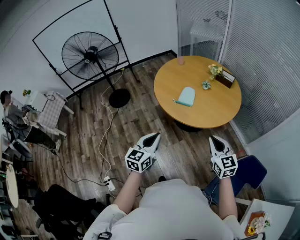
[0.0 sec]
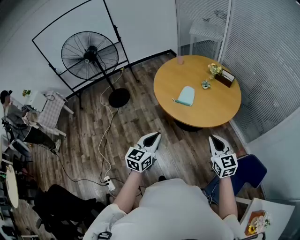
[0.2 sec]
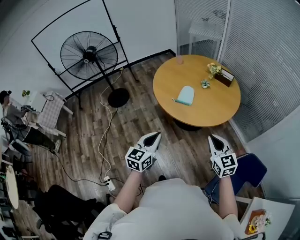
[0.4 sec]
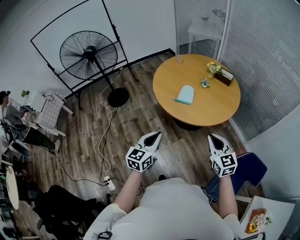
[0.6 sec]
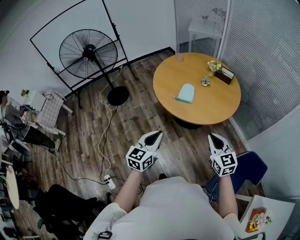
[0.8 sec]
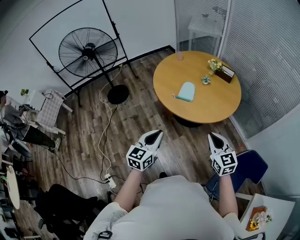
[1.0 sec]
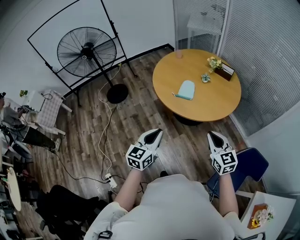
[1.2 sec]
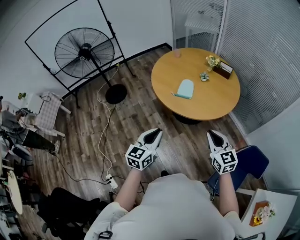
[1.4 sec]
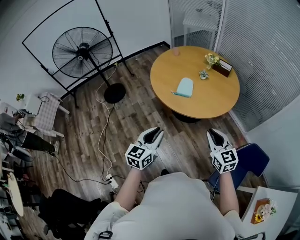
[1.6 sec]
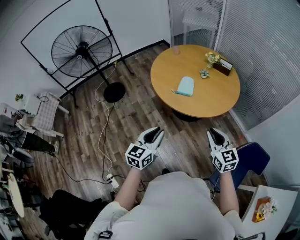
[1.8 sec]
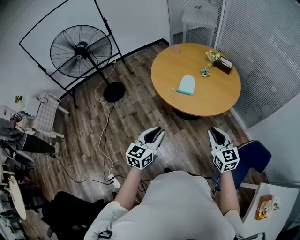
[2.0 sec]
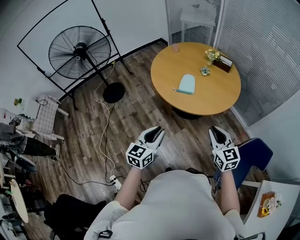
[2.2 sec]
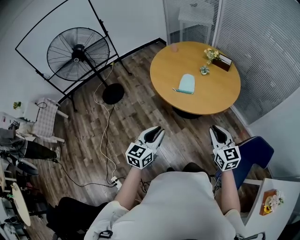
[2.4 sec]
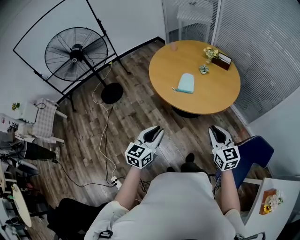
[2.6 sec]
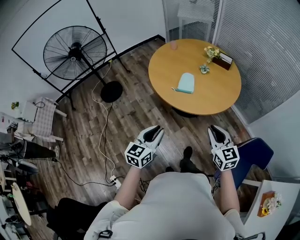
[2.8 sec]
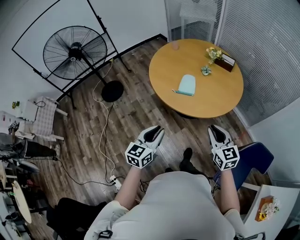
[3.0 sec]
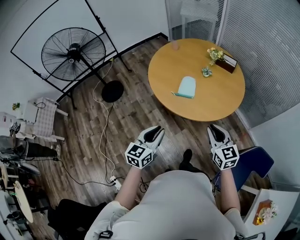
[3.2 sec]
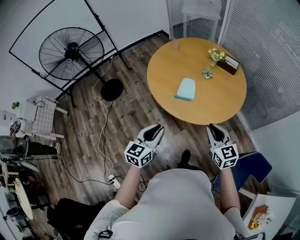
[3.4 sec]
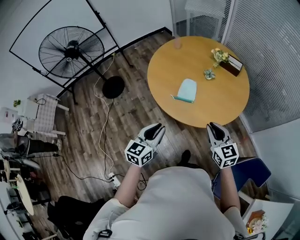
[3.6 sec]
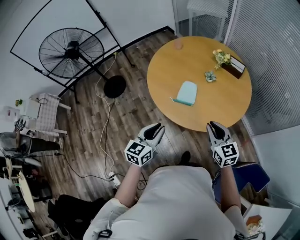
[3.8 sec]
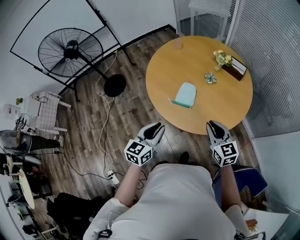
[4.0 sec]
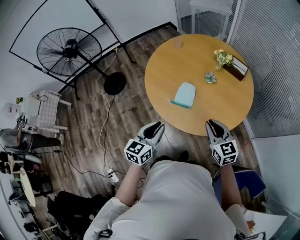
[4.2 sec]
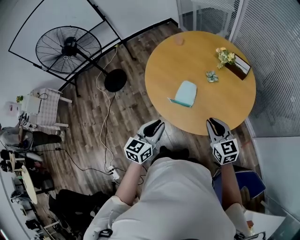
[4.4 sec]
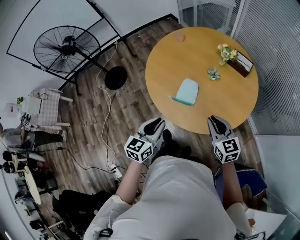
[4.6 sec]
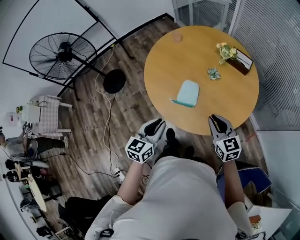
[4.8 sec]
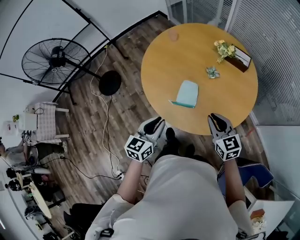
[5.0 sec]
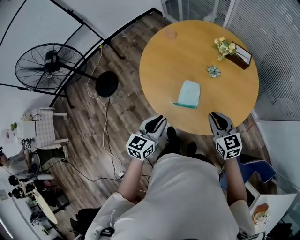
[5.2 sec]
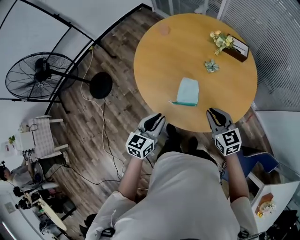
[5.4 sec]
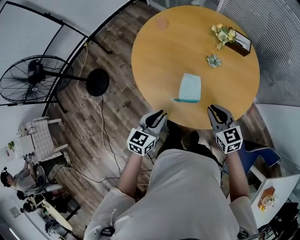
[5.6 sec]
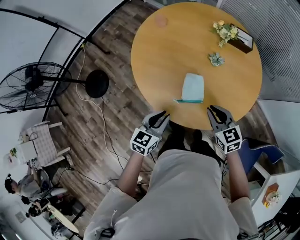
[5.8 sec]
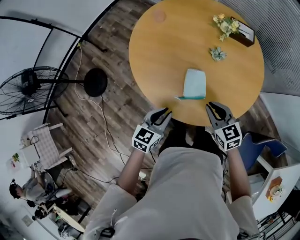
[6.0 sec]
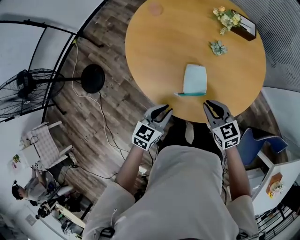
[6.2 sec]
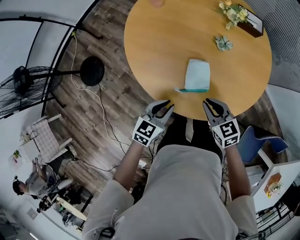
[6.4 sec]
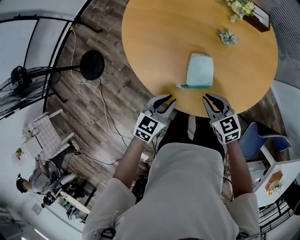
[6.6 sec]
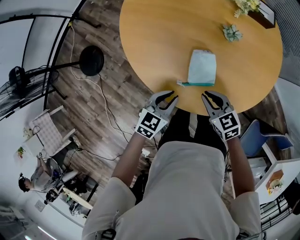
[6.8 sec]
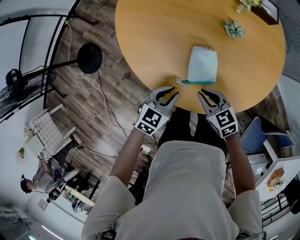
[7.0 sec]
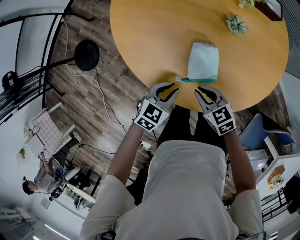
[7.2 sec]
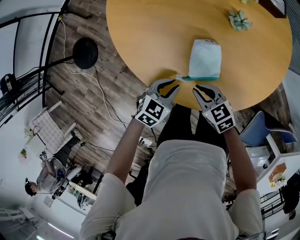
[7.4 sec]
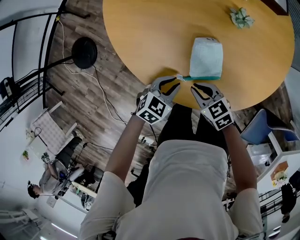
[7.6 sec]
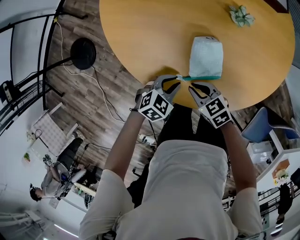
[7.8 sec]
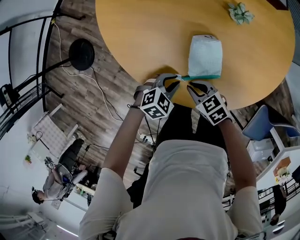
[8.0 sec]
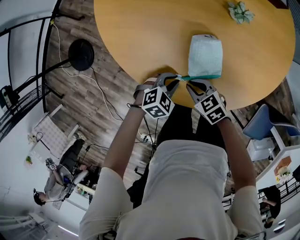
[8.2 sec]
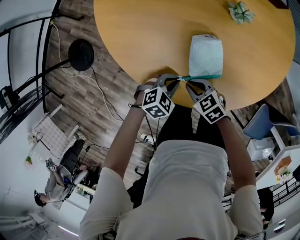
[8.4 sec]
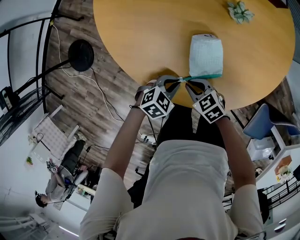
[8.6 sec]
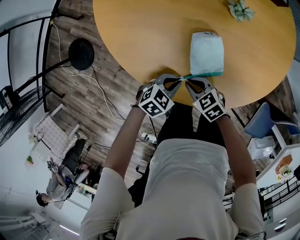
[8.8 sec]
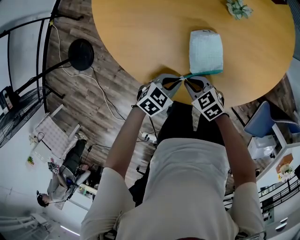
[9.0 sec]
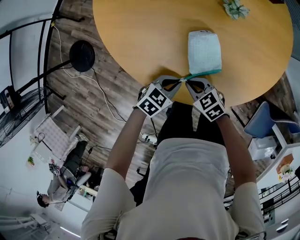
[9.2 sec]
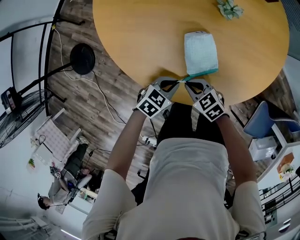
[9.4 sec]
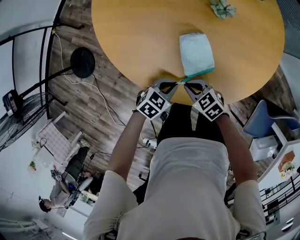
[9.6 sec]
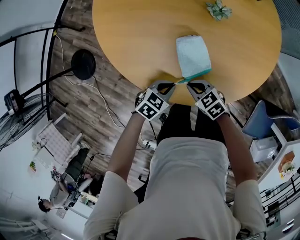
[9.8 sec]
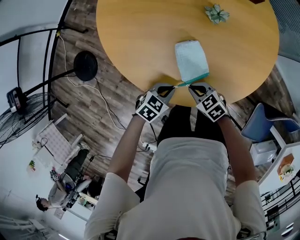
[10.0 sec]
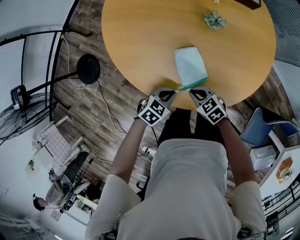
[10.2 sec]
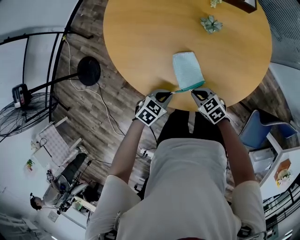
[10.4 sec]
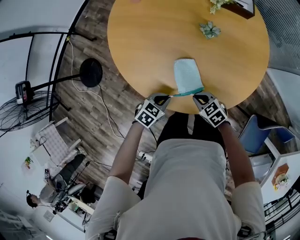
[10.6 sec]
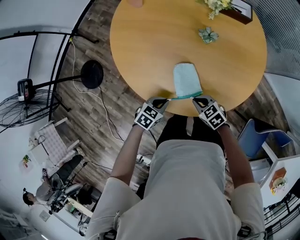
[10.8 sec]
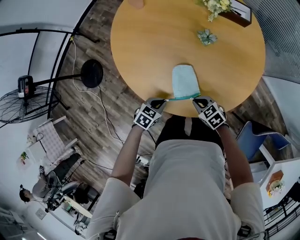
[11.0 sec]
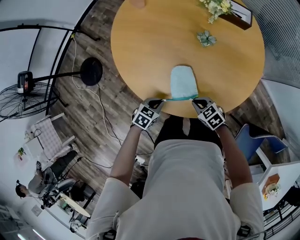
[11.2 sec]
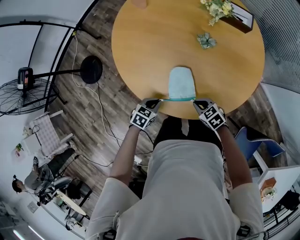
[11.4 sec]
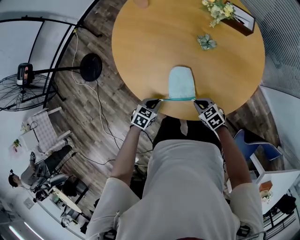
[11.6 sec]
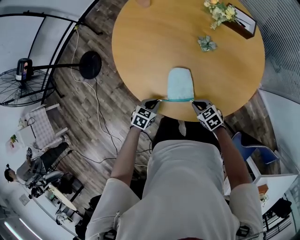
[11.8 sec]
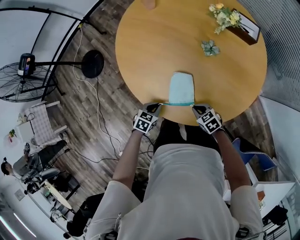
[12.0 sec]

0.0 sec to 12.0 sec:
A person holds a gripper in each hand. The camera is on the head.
0.0 sec to 1.6 sec: There are only small adjustments of the grippers.
1.6 sec to 3.0 sec: Both grippers move forward, approximately 5 cm.
3.0 sec to 4.4 sec: The right gripper travels forward by about 25 cm. The left gripper moves forward and to the right, about 25 cm.
4.4 sec to 6.0 sec: The right gripper travels to the left, forward and downward by approximately 25 cm, while the left gripper shifts roughly 25 cm forward, downward and to the left, and swivels about 30 degrees.
6.0 sec to 7.6 sec: The two grippers go approximately 20 cm downward. The left gripper swivels some 30 degrees; the right gripper swivels some 20 degrees.
7.6 sec to 9.0 sec: The right gripper heads downward, covering about 5 cm.
9.0 sec to 10.4 sec: The right gripper ends up about 10 cm from where it was, while the left gripper shifts approximately 5 cm upward.
10.4 sec to 12.0 sec: The right gripper ends up some 10 cm from where it was. The left gripper turns by roughly 30 degrees.

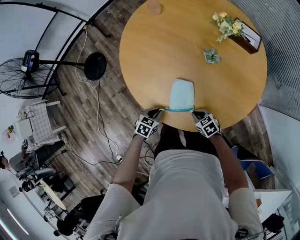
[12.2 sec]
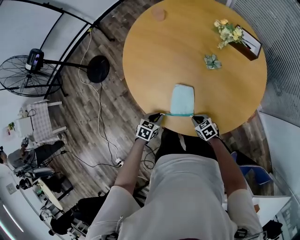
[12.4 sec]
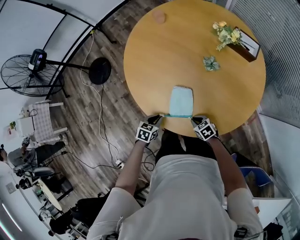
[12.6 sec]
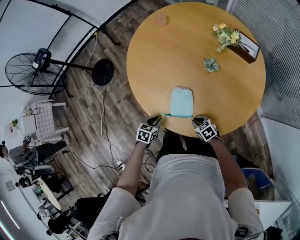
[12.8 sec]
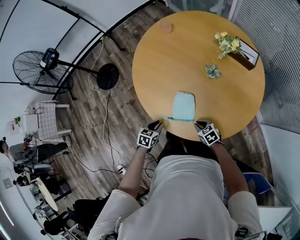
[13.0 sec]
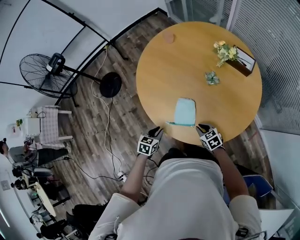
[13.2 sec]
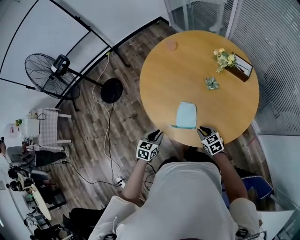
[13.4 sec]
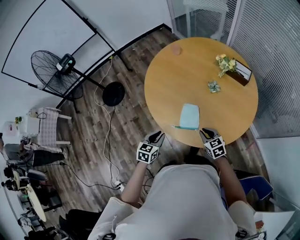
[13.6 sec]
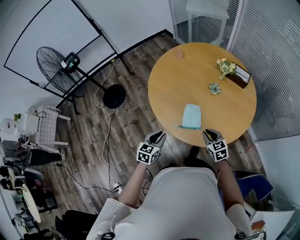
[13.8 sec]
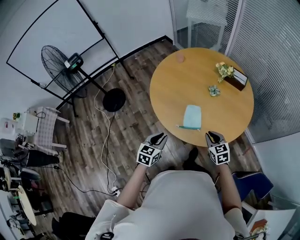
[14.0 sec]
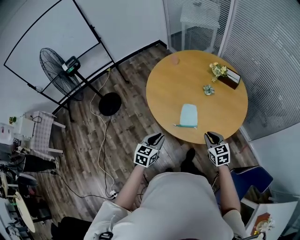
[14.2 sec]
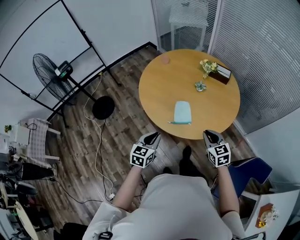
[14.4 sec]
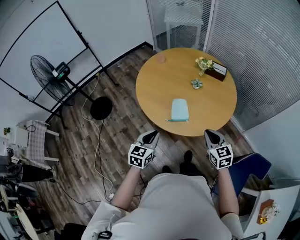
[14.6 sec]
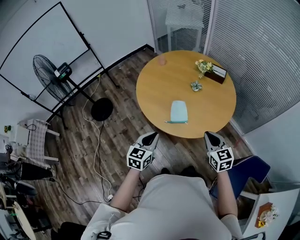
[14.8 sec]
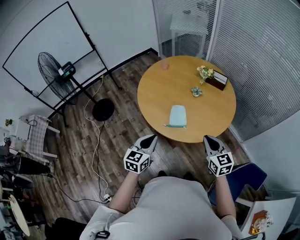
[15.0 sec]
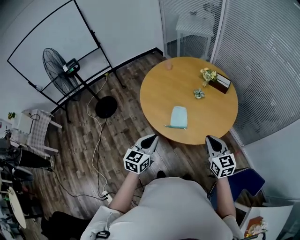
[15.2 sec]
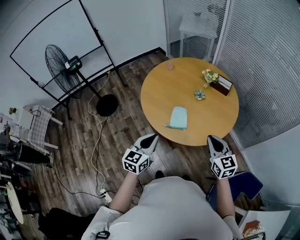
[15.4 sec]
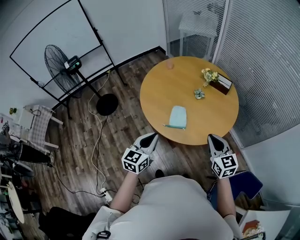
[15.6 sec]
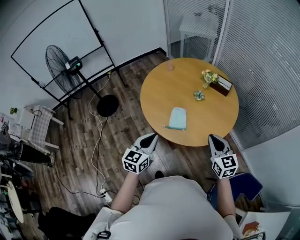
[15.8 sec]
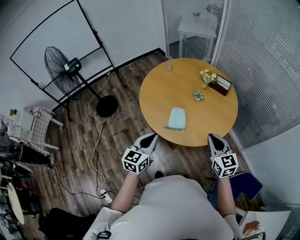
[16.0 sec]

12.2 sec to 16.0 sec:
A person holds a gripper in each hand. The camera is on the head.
12.2 sec to 13.4 sec: Both grippers travel together upward, about 15 cm. The left gripper swivels some 20 degrees.
13.4 sec to 14.8 sec: Both grippers travel together upward and backward, approximately 30 cm. The left gripper changes its angle by roughly 20 degrees. Meanwhile the right gripper swivels about 30 degrees.
14.8 sec to 16.0 sec: The right gripper shifts about 10 cm upward and to the right. The left gripper moves upward, approximately 5 cm.

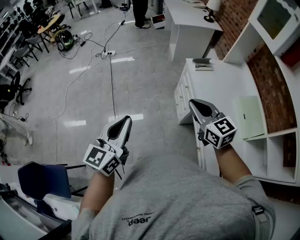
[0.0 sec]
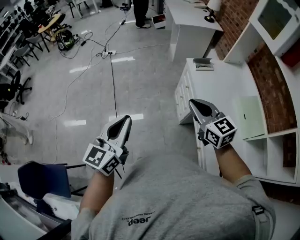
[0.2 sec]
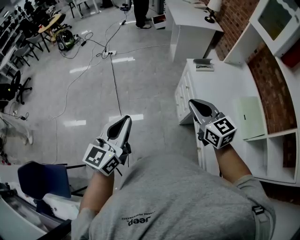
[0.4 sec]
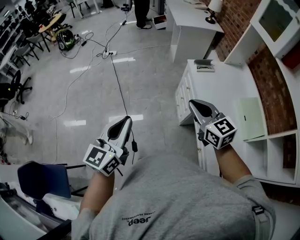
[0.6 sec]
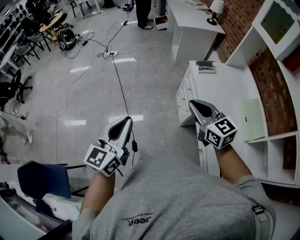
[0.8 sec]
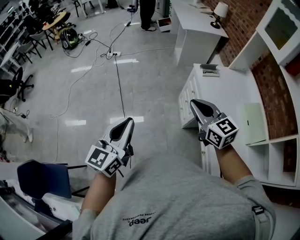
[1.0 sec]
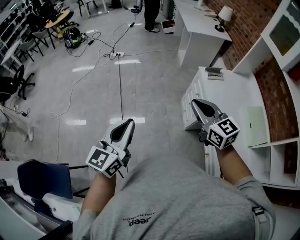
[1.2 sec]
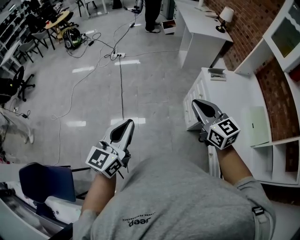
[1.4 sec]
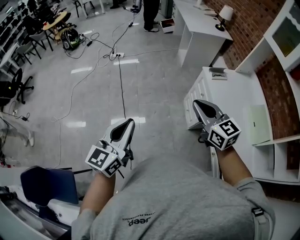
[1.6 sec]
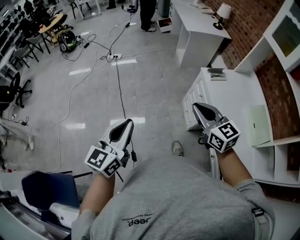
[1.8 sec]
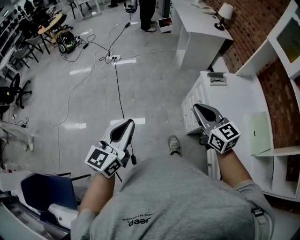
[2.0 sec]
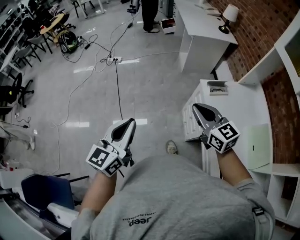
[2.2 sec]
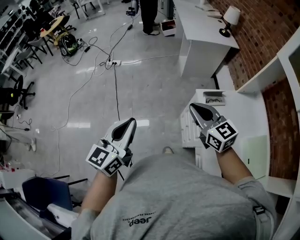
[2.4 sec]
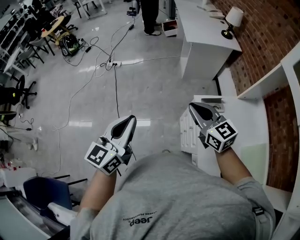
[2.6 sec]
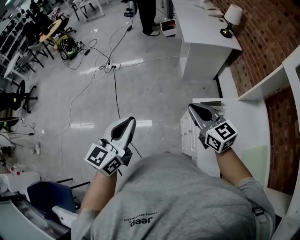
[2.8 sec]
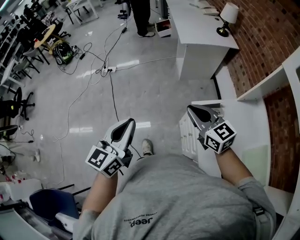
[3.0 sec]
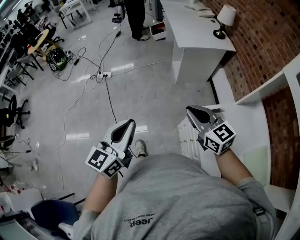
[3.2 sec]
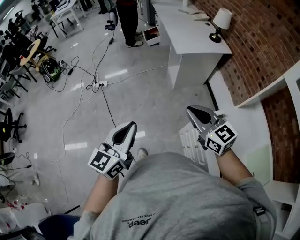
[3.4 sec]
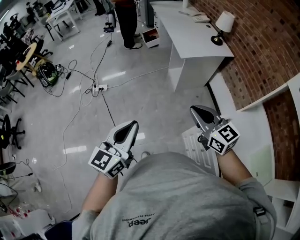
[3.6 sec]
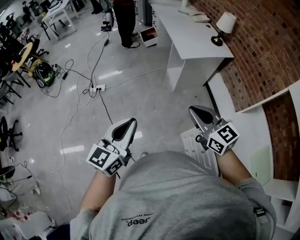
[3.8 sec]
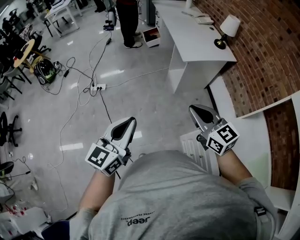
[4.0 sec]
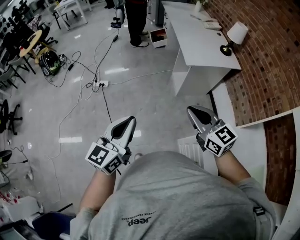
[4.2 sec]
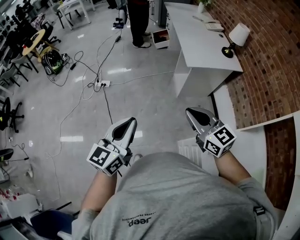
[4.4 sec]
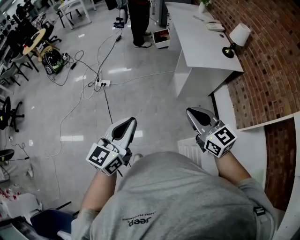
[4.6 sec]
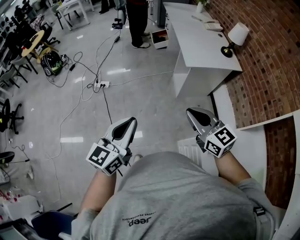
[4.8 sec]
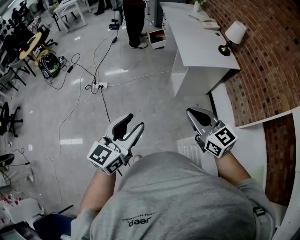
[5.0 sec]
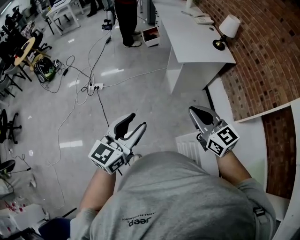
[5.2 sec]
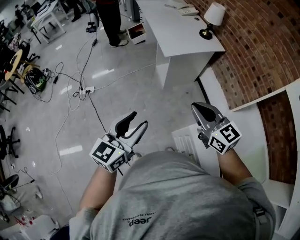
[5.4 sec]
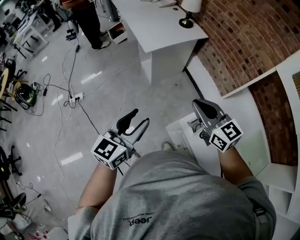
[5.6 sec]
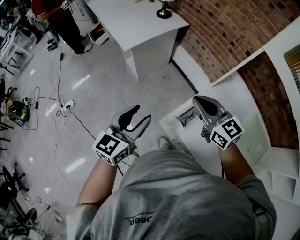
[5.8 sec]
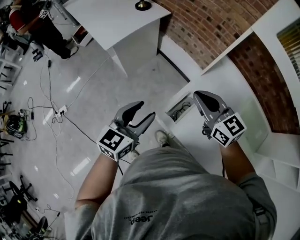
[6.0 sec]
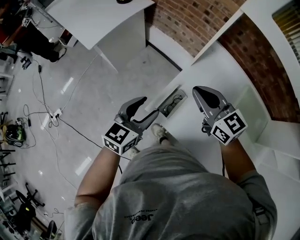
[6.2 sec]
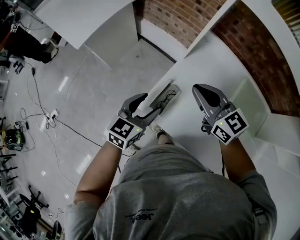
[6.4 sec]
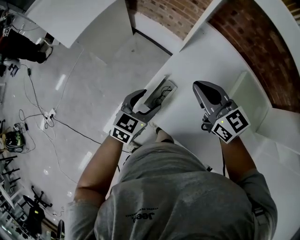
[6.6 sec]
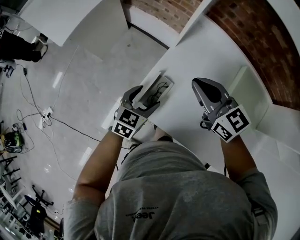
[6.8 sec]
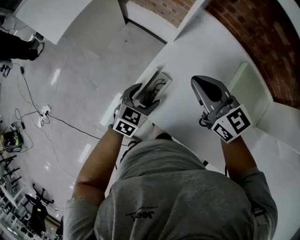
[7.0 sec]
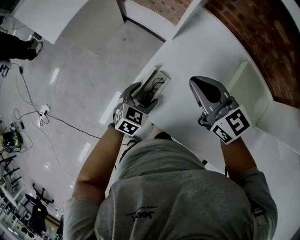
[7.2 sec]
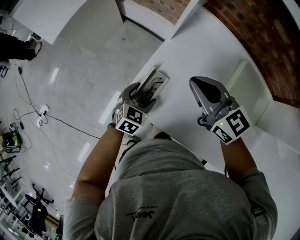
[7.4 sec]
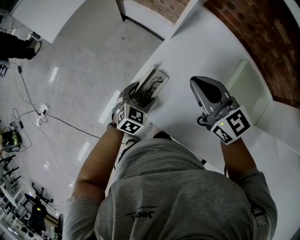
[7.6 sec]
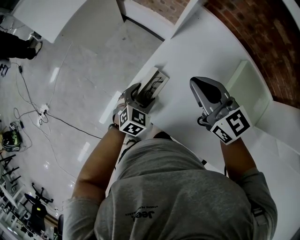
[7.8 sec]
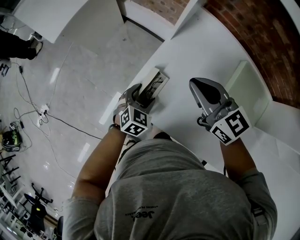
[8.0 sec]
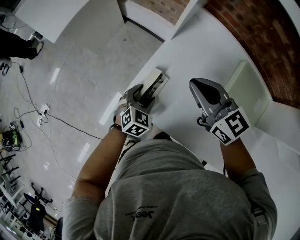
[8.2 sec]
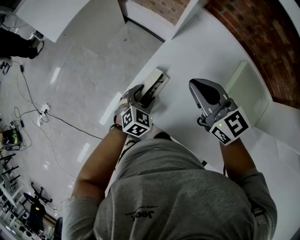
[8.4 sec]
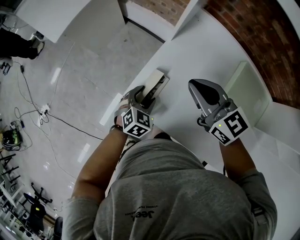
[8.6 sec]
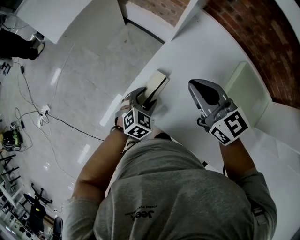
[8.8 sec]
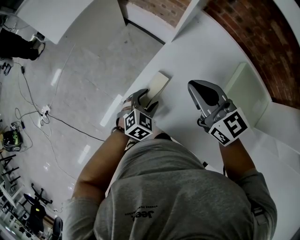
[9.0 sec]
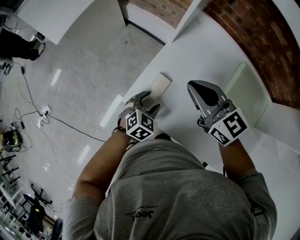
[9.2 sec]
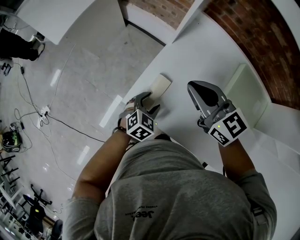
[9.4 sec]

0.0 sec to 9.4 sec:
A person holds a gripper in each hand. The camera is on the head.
0.0 sec to 1.6 sec: The two grippers go approximately 15 cm to the left.
1.6 sec to 3.2 sec: The pair of grippers is taken forward and to the right, roughly 40 cm.
3.2 sec to 4.8 sec: Both grippers travel together forward, some 15 cm.
4.8 sec to 6.2 sec: The right gripper changes place by some 35 cm, and changes its angle by approximately 40 degrees; the left gripper changes place by some 40 cm, swivels about 60 degrees, and opens up.
6.2 sec to 7.8 sec: The right gripper heads to the right and downward, covering approximately 10 cm. The left gripper heads downward and to the right, covering some 25 cm, and swivels approximately 30 degrees.
7.8 sec to 9.4 sec: There are only small adjustments of the grippers.
